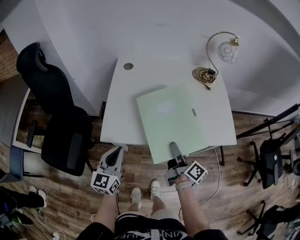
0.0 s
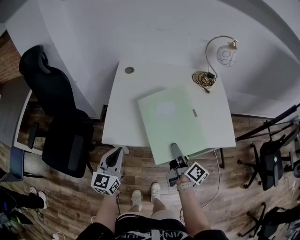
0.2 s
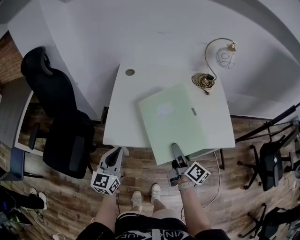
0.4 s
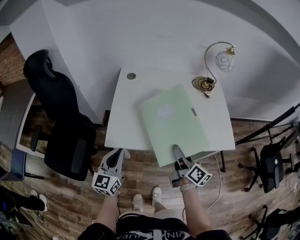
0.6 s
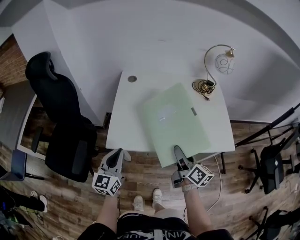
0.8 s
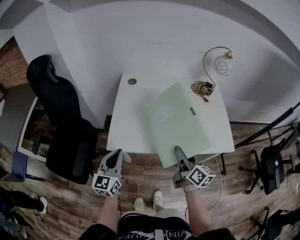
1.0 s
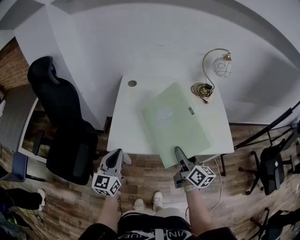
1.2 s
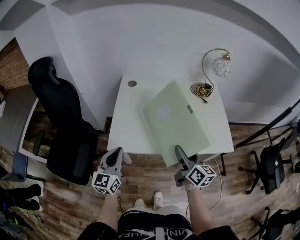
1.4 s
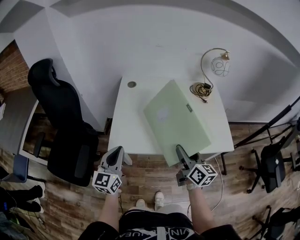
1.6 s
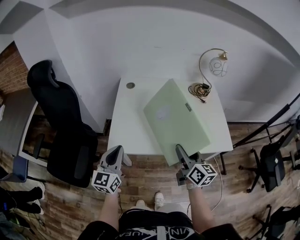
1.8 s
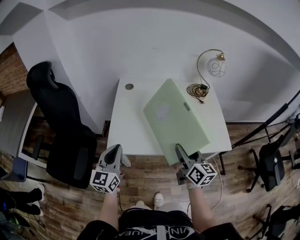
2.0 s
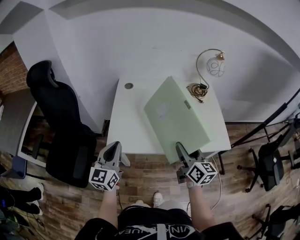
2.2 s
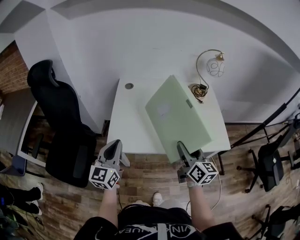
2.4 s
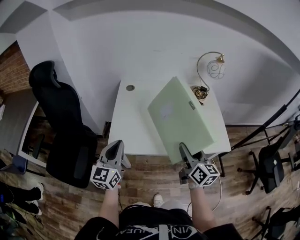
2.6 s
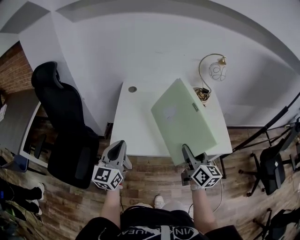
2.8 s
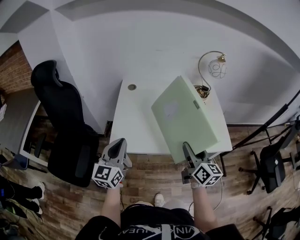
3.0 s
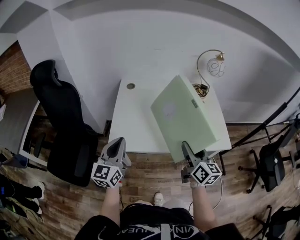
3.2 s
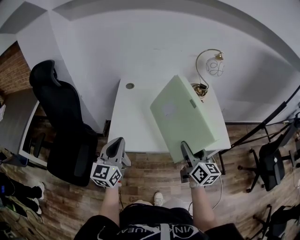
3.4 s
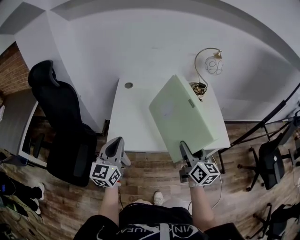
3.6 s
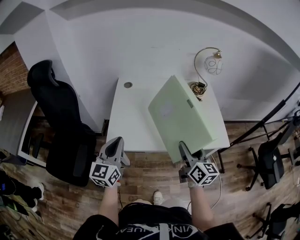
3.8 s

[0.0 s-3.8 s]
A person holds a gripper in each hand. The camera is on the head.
0.0 to 1.2 s: Both grippers move upward, about 5 cm. The right gripper changes its angle by roughly 20 degrees.
1.2 to 2.6 s: The grippers both shift upward by about 5 cm.
2.6 to 3.8 s: The grippers stay close to where they were, moving slightly.

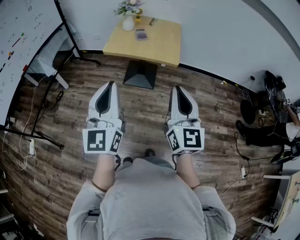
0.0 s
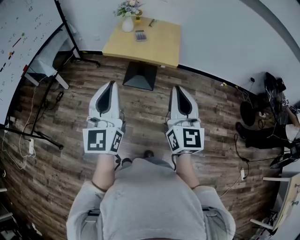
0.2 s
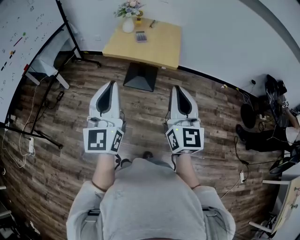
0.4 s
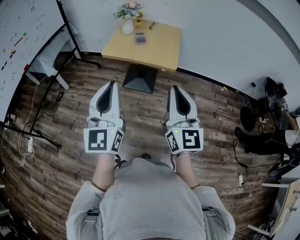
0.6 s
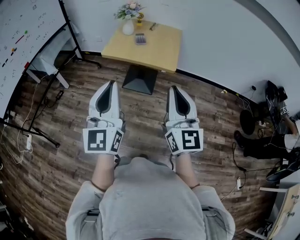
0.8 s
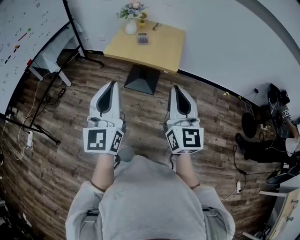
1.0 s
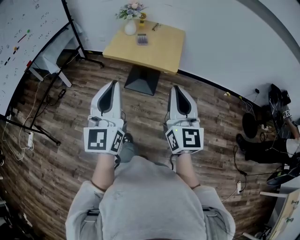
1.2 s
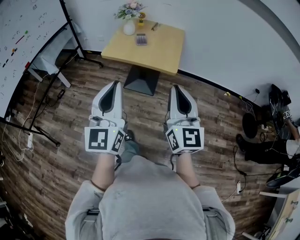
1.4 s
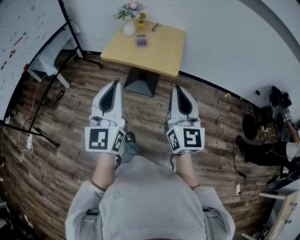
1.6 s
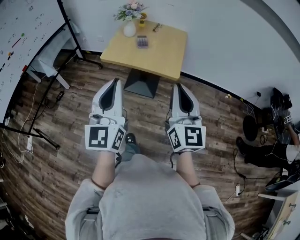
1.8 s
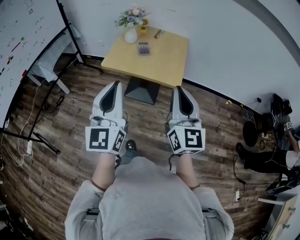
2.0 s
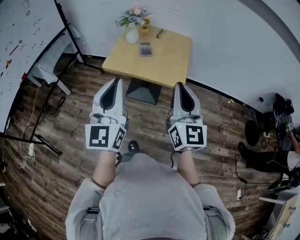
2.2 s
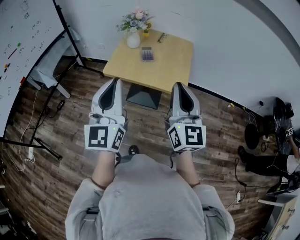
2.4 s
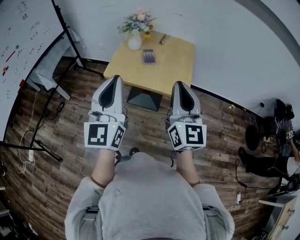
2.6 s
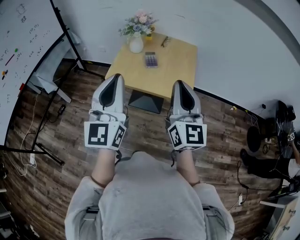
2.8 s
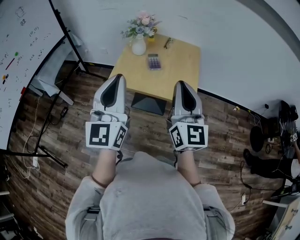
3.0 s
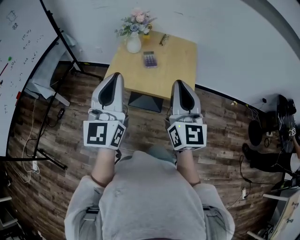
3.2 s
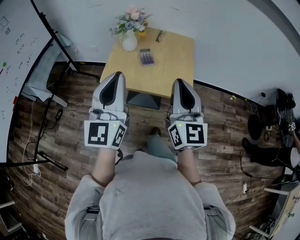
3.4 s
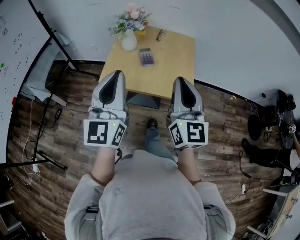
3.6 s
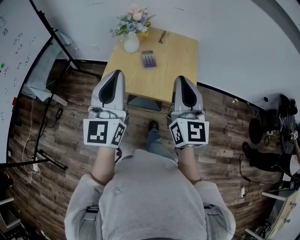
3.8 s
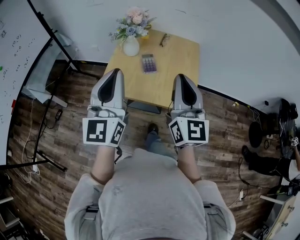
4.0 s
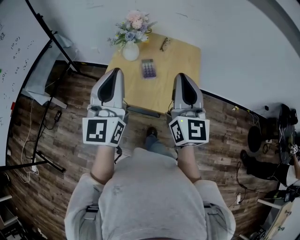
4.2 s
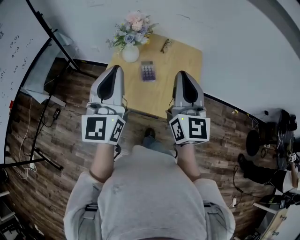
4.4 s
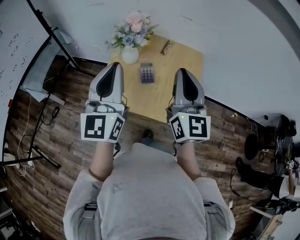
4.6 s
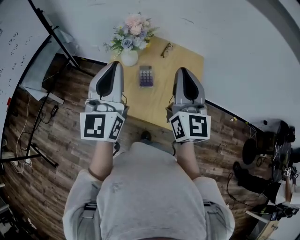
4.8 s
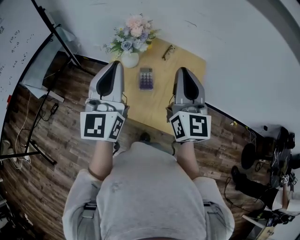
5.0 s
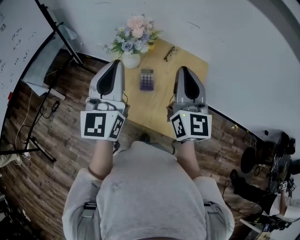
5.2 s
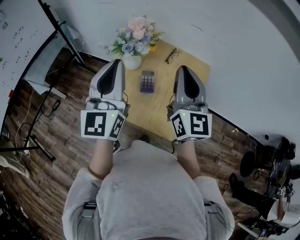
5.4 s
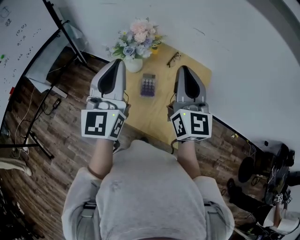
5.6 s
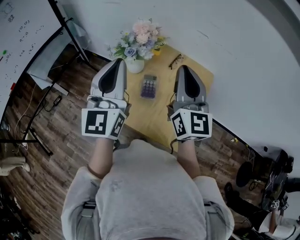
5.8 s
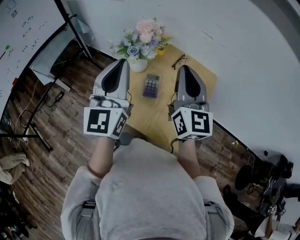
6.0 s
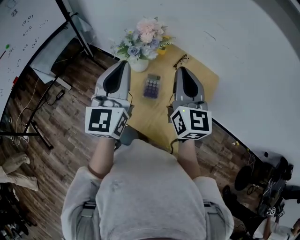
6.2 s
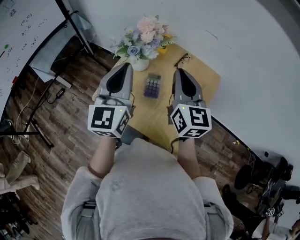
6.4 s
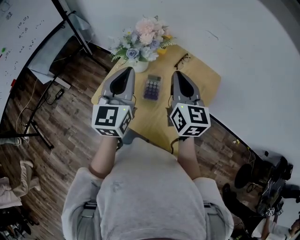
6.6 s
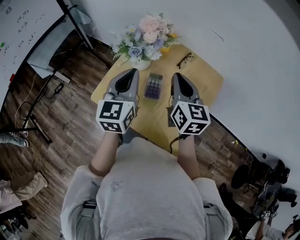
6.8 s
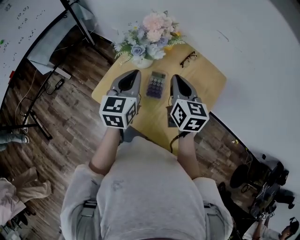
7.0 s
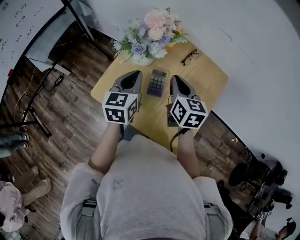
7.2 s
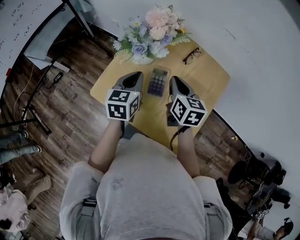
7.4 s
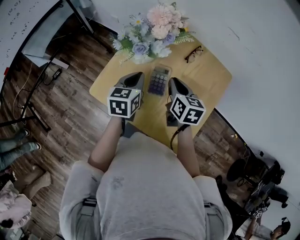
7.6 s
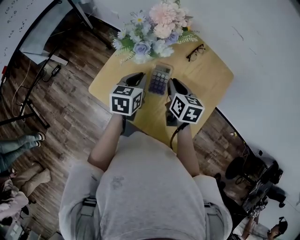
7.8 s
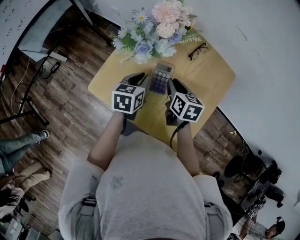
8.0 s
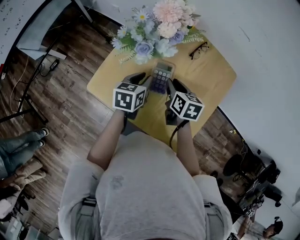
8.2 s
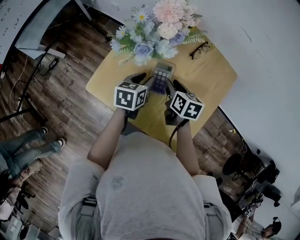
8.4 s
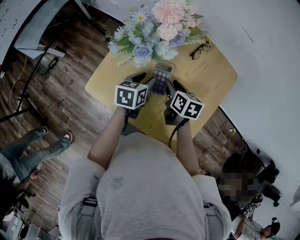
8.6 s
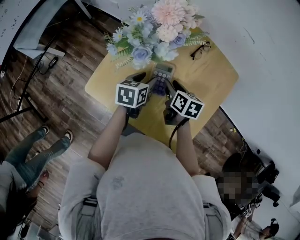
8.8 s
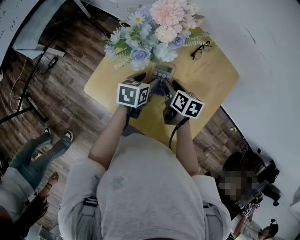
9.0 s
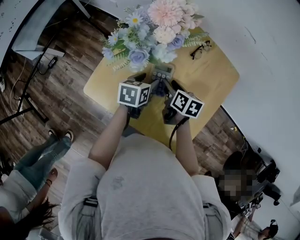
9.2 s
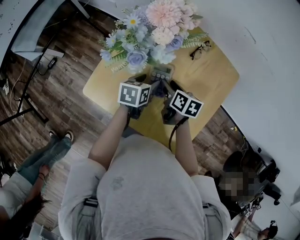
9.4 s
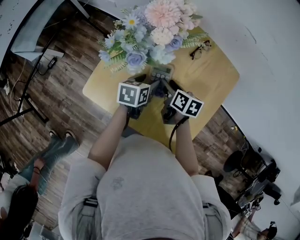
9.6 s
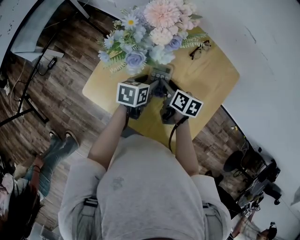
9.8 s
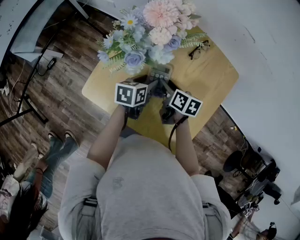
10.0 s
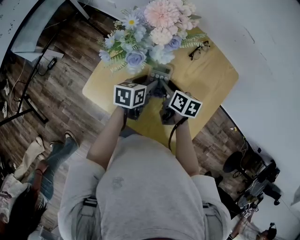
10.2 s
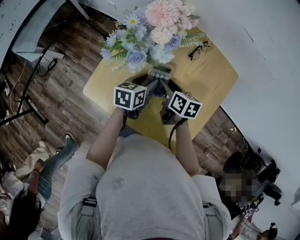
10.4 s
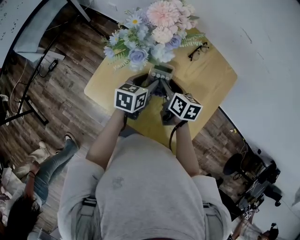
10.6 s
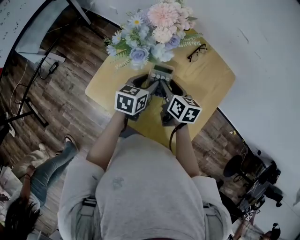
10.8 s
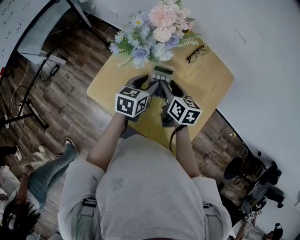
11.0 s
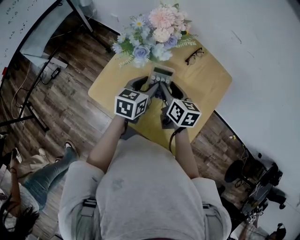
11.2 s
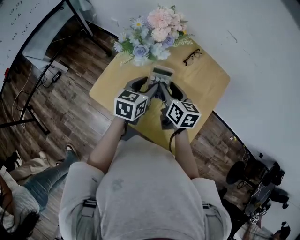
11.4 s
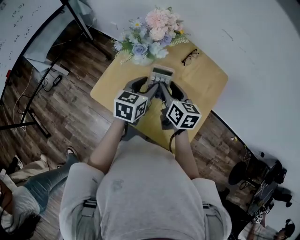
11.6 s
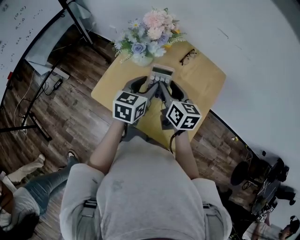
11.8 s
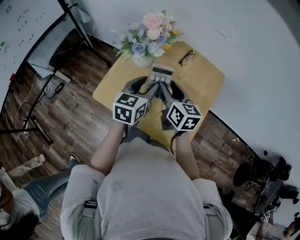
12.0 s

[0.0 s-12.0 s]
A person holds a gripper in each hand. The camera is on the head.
0.0 to 1.6 s: The right gripper travels forward and to the right by some 10 cm. Meanwhile the left gripper heads to the right and forward, covering approximately 10 cm.
1.6 to 3.0 s: Both grippers travel together forward, approximately 25 cm.
3.0 to 4.4 s: The grippers both shift forward by roughly 20 cm.
4.4 to 6.0 s: The grippers both shift forward by roughly 15 cm.
6.0 to 7.6 s: Both grippers travel together downward, roughly 25 cm. The right gripper tilts its fingers roughly 40 degrees downward; the left gripper points its fingers roughly 40 degrees further downward.
7.6 to 9.0 s: Both grippers travel together downward, about 10 cm. The left gripper swivels some 20 degrees, and opens. Meanwhile the right gripper rotates roughly 20 degrees, and opens.
9.0 to 10.4 s: The grippers make only small movements.
10.4 to 12.0 s: The grippers both shift upward by about 15 cm. The right gripper turns by approximately 30 degrees, while the left gripper changes its angle by roughly 30 degrees.

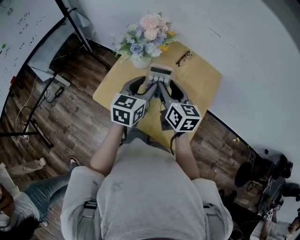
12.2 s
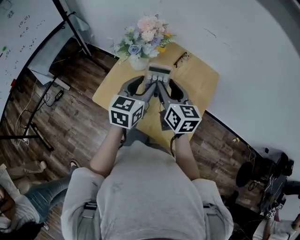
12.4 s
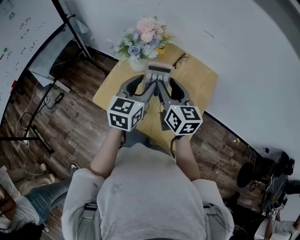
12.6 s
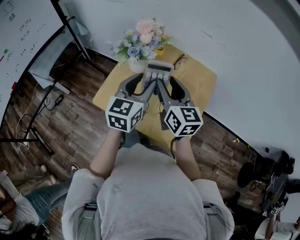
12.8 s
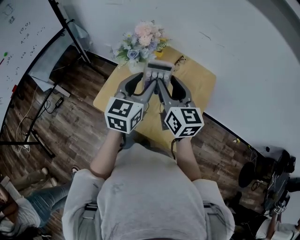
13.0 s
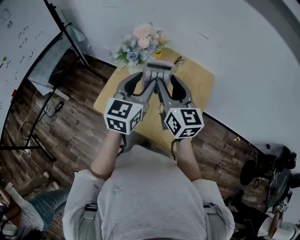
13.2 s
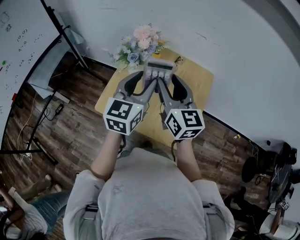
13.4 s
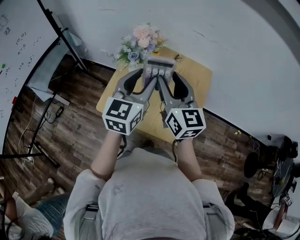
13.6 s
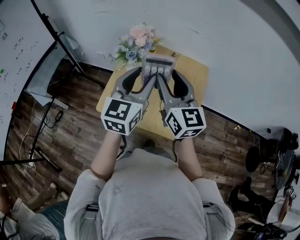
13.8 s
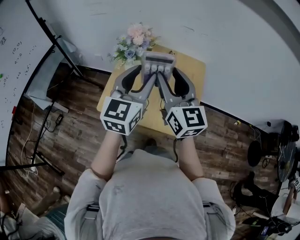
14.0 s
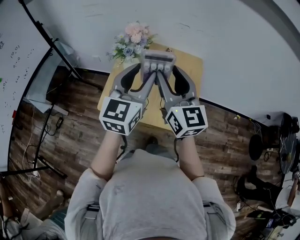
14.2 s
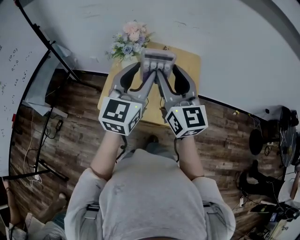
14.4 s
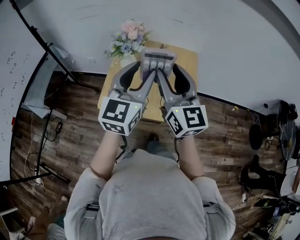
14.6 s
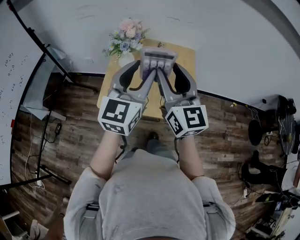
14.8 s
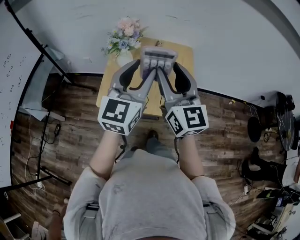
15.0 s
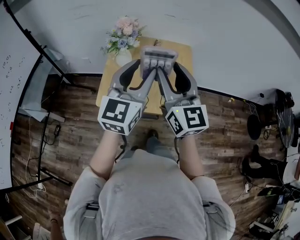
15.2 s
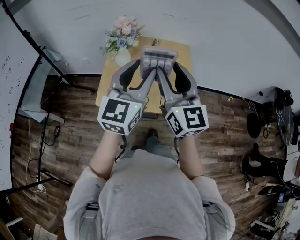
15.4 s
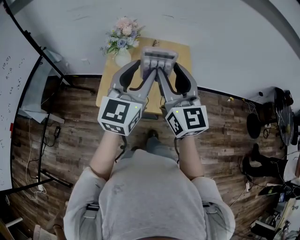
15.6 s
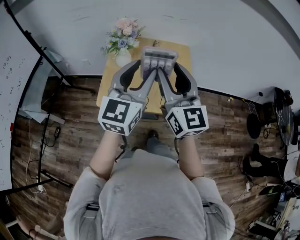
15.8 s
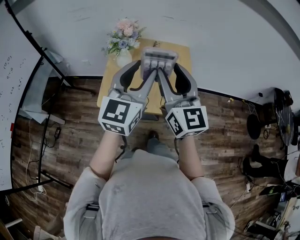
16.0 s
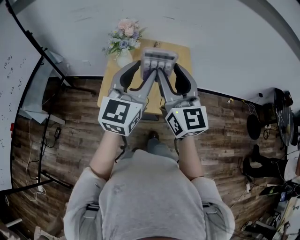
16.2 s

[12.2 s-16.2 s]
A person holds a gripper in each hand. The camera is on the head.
12.2 to 13.6 s: The grippers both shift upward by roughly 15 cm. The right gripper turns by approximately 20 degrees.
13.6 to 14.8 s: The grippers both shift backward and upward by approximately 10 cm.
14.8 to 16.2 s: There are only small adjustments of the grippers.

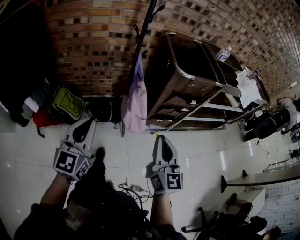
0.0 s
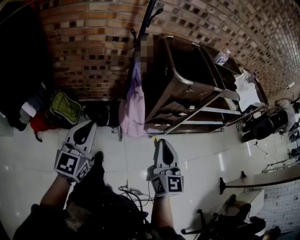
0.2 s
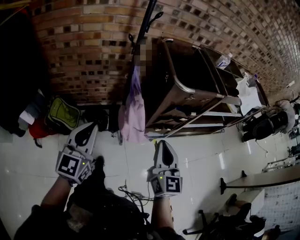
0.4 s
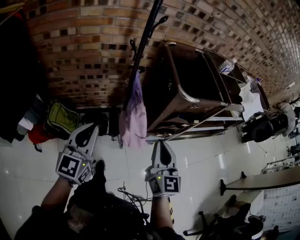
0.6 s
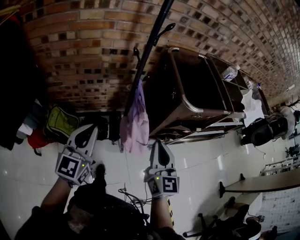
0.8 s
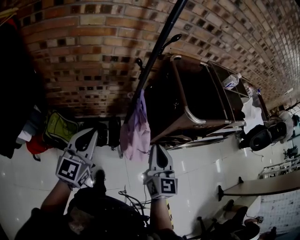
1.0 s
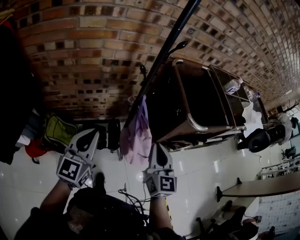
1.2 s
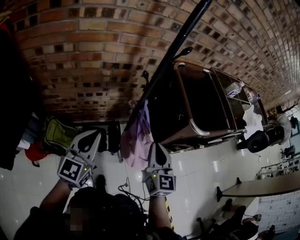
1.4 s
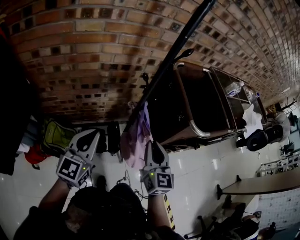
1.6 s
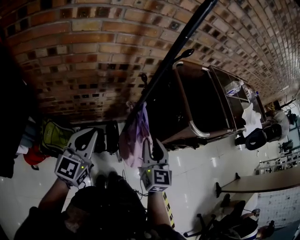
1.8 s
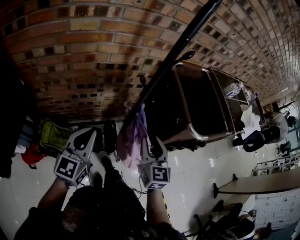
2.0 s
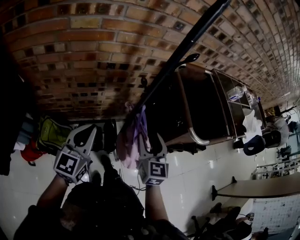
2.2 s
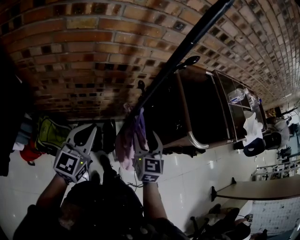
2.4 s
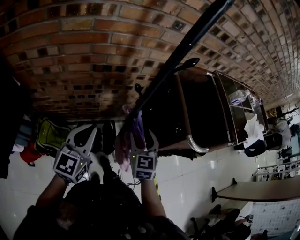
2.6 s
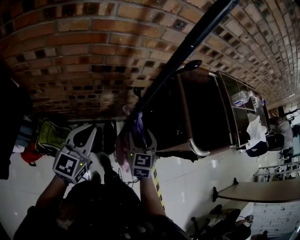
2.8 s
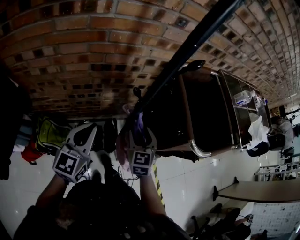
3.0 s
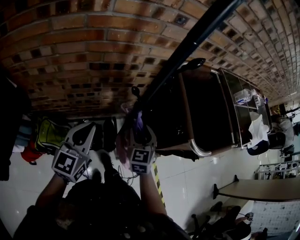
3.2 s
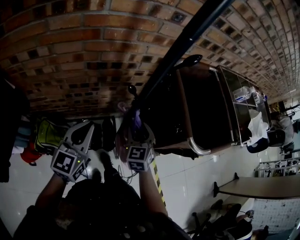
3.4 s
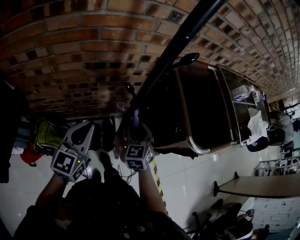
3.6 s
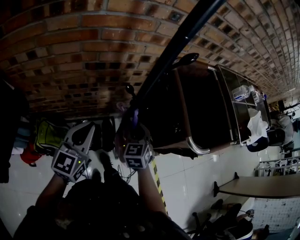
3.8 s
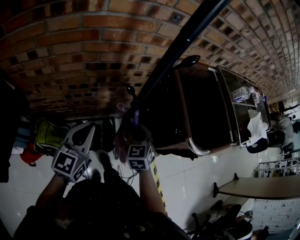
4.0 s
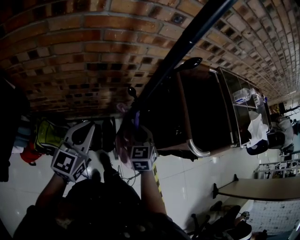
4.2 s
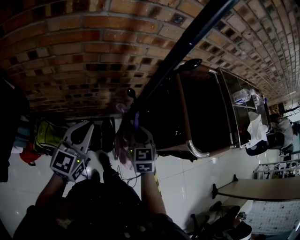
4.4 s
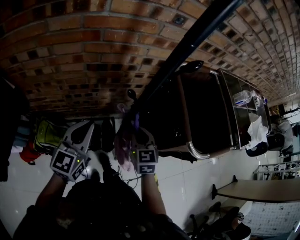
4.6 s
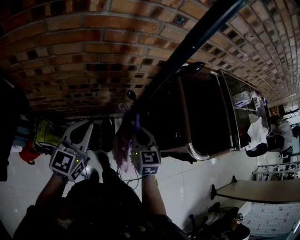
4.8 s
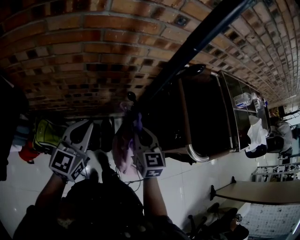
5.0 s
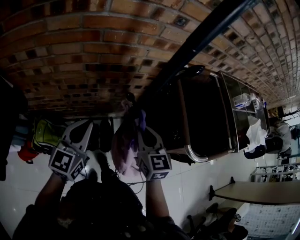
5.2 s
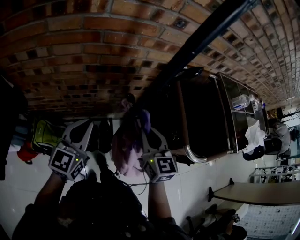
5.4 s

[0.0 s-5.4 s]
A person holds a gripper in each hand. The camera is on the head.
0.0 to 1.4 s: Both grippers move forward and to the left, approximately 35 cm.
1.4 to 2.8 s: The right gripper is displaced forward and downward by some 20 cm, swivels some 20 degrees, and opens, while the left gripper shifts some 15 cm forward.
2.8 to 4.0 s: The right gripper closes up.
4.0 to 5.4 s: The right gripper moves upward, approximately 10 cm, and turns by approximately 30 degrees.
